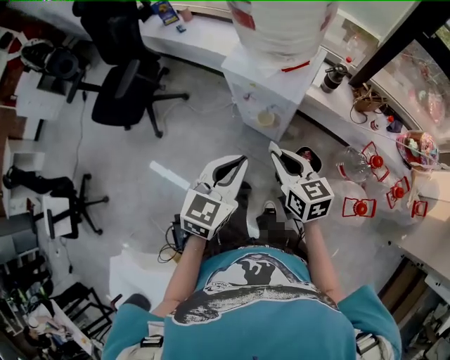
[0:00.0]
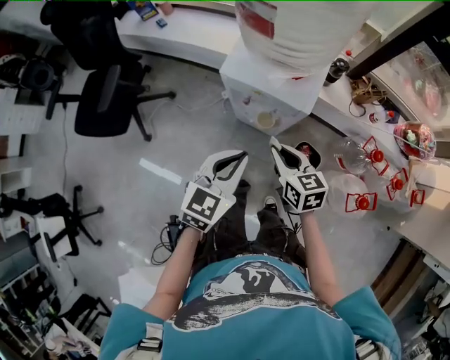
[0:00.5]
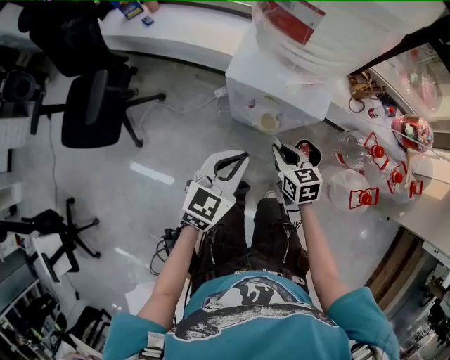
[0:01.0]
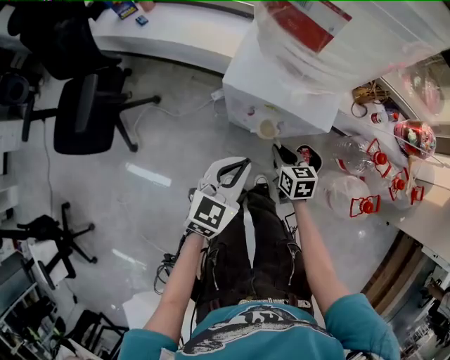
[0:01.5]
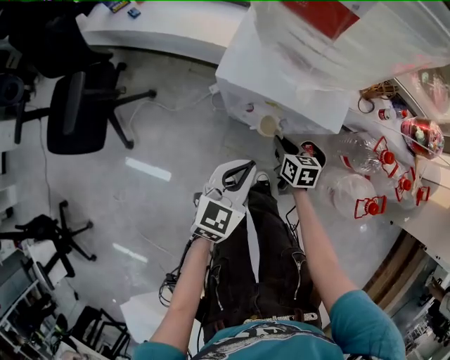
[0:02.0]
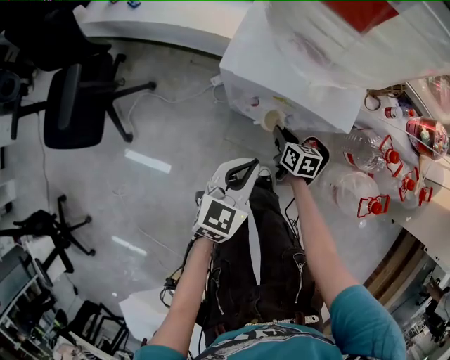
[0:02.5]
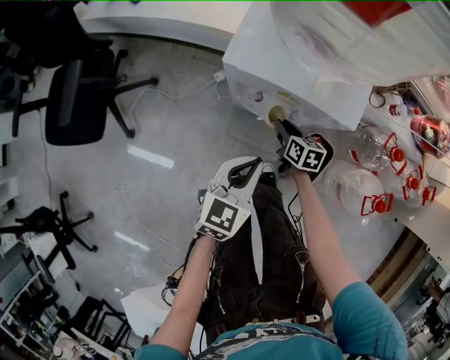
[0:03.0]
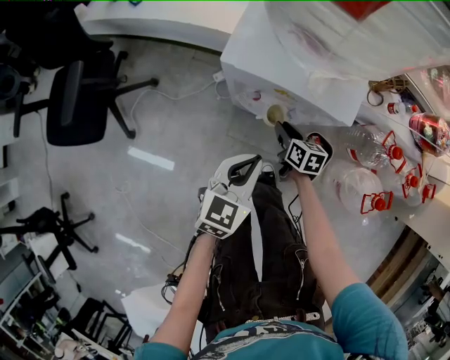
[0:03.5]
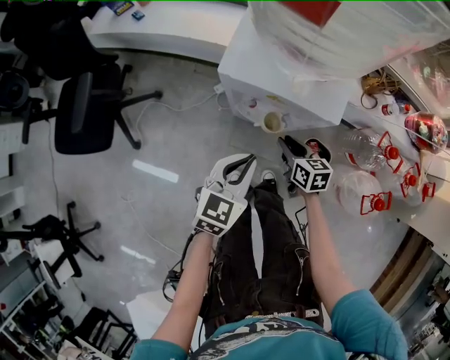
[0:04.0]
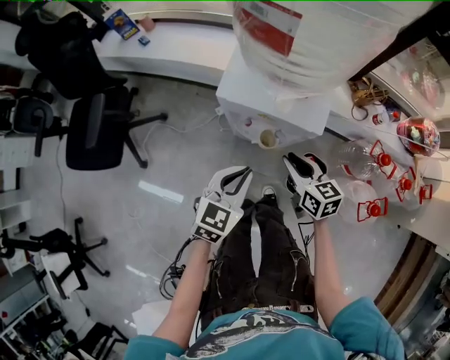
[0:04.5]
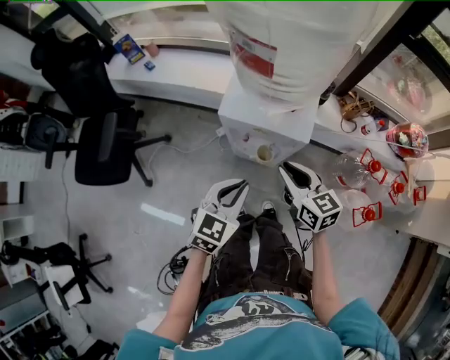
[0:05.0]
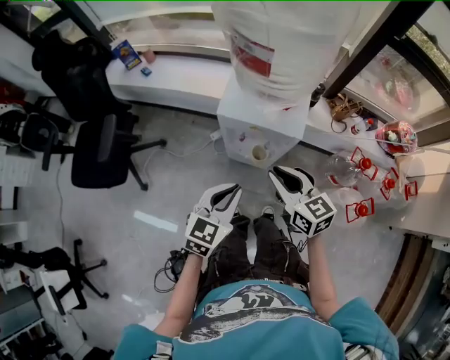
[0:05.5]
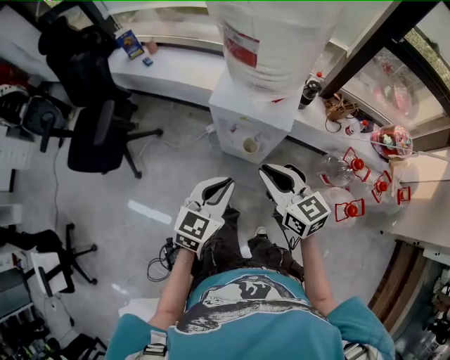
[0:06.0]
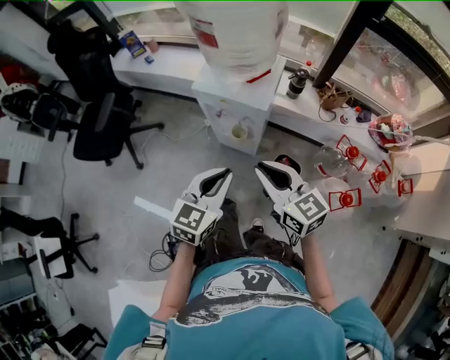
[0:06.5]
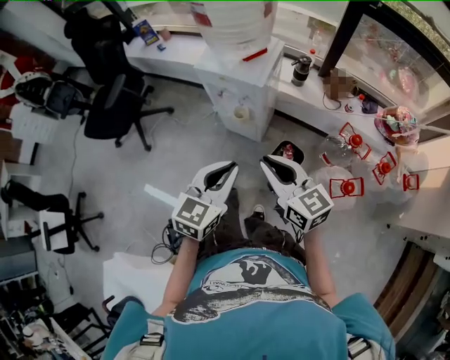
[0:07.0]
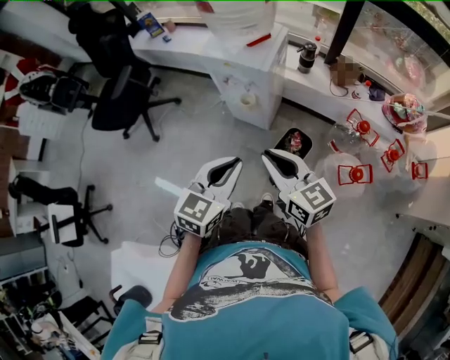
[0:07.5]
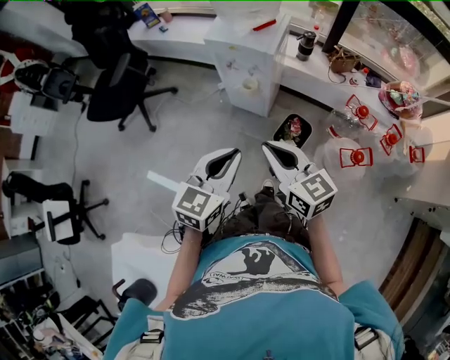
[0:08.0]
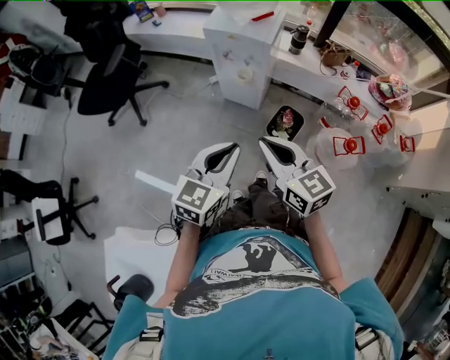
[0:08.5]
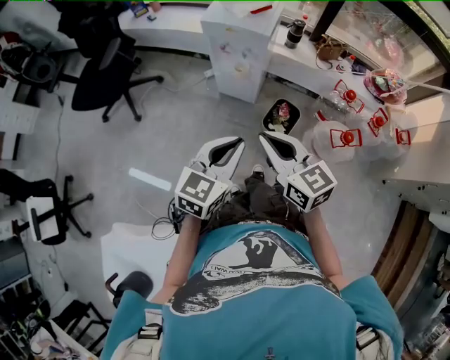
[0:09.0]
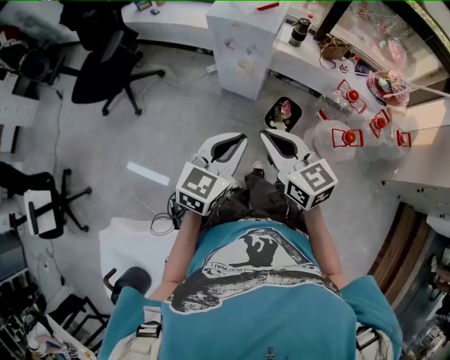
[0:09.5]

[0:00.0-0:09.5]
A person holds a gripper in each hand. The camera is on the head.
0:00.0 to 0:02.0: The left gripper shifts some 20 cm downward and forward, while the right gripper moves downward and forward, some 35 cm, and turns by approximately 30 degrees.
0:02.0 to 0:04.0: There are only small adjustments of the grippers.
0:04.0 to 0:05.5: The left gripper travels upward and backward by some 15 cm, while the right gripper travels upward by approximately 25 cm, and turns by some 20 degrees.
0:05.5 to 0:07.5: Both grippers move backward and to the right, approximately 25 cm.
0:07.5 to 0:09.5: Both grippers travel together backward and to the left, some 10 cm.

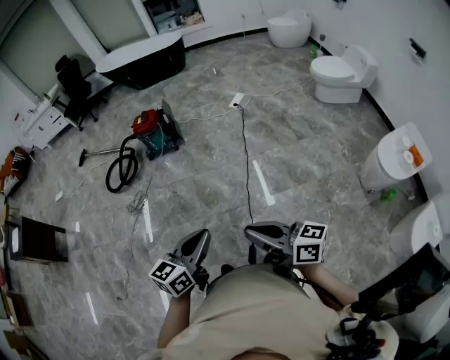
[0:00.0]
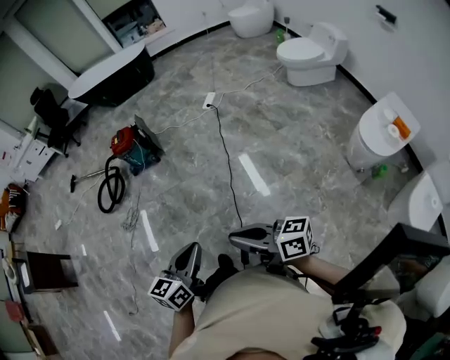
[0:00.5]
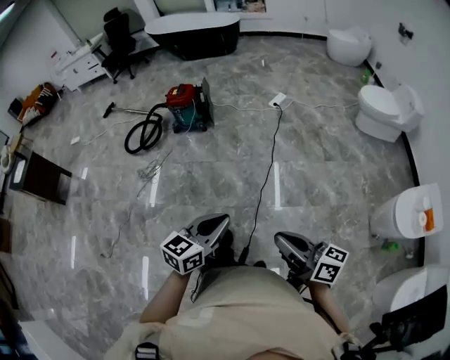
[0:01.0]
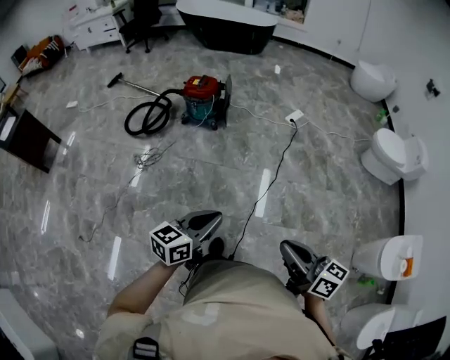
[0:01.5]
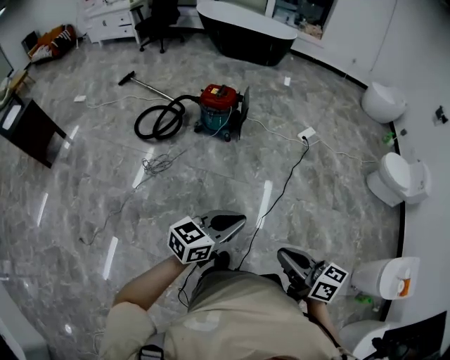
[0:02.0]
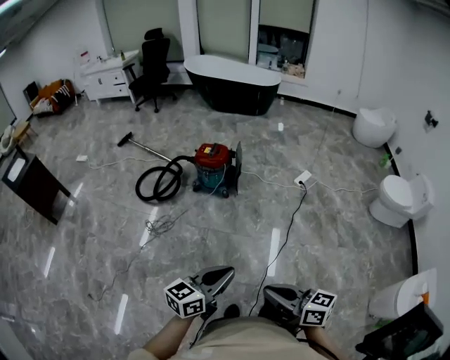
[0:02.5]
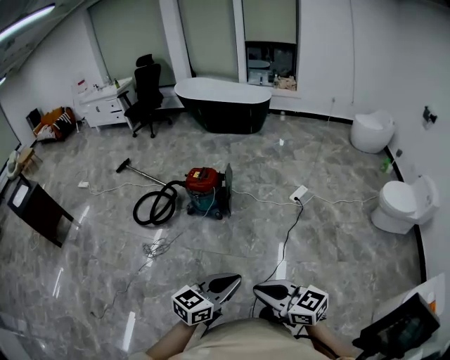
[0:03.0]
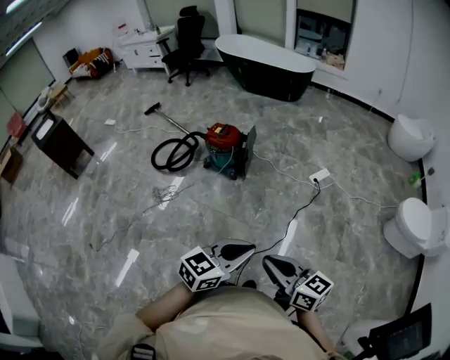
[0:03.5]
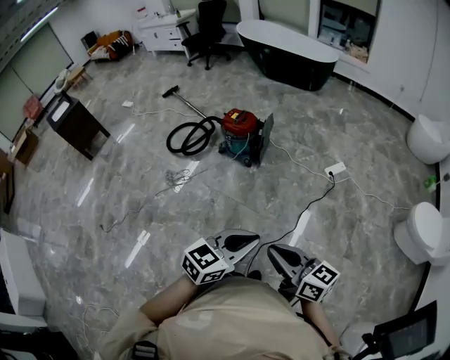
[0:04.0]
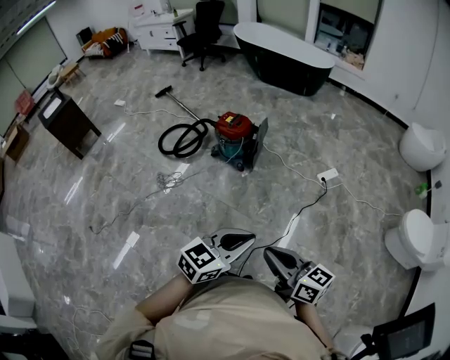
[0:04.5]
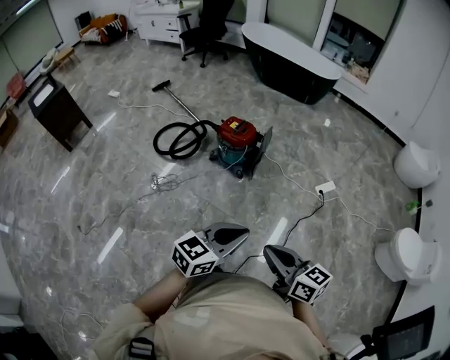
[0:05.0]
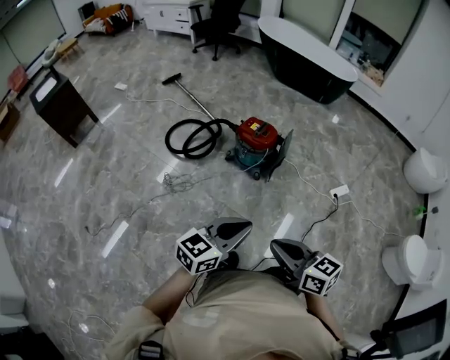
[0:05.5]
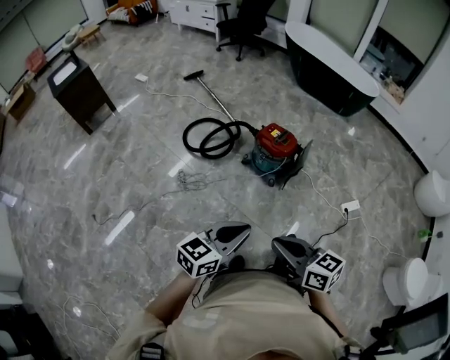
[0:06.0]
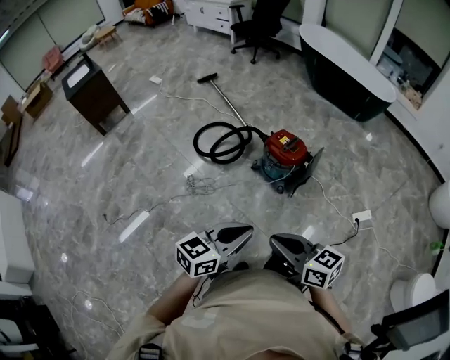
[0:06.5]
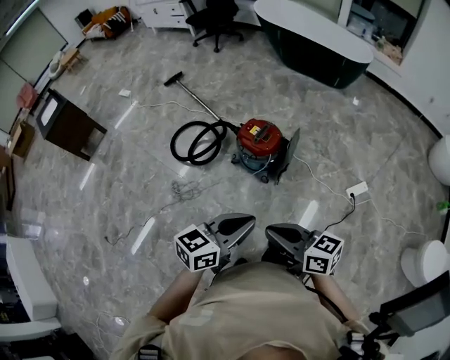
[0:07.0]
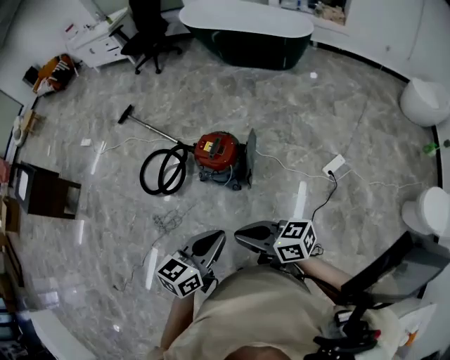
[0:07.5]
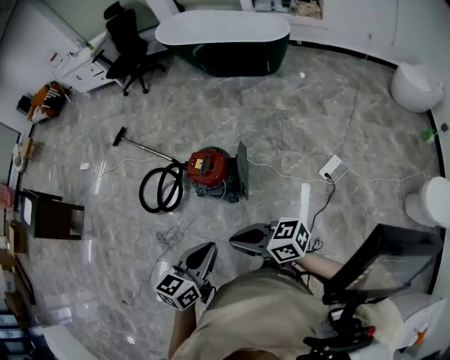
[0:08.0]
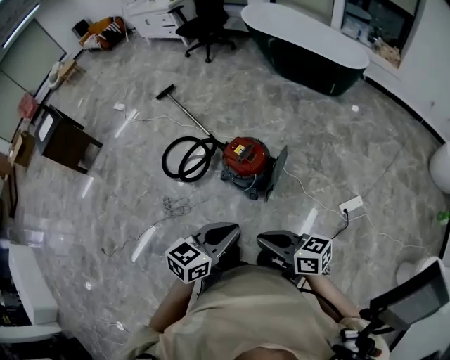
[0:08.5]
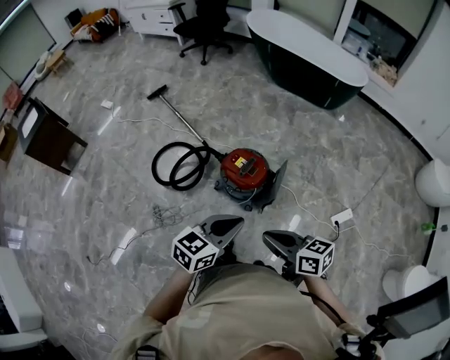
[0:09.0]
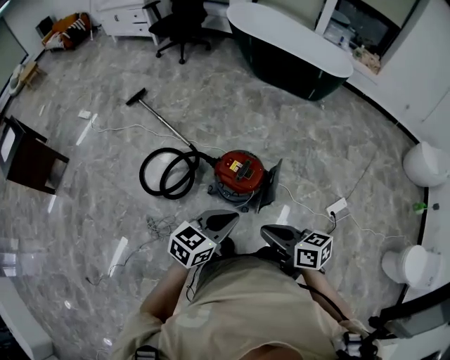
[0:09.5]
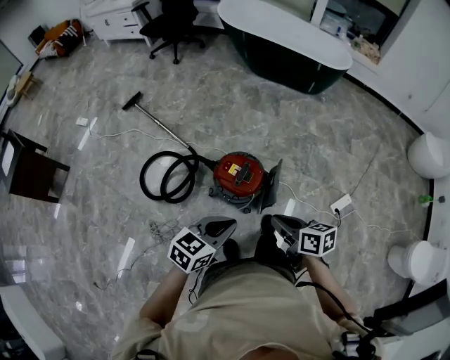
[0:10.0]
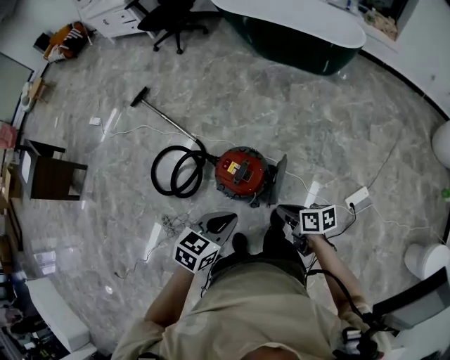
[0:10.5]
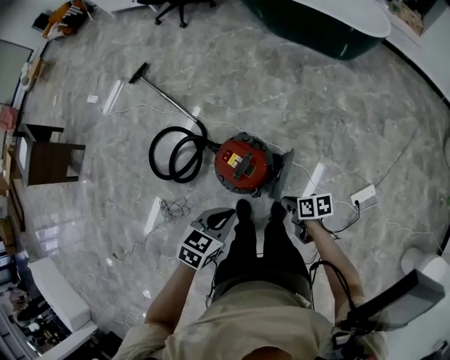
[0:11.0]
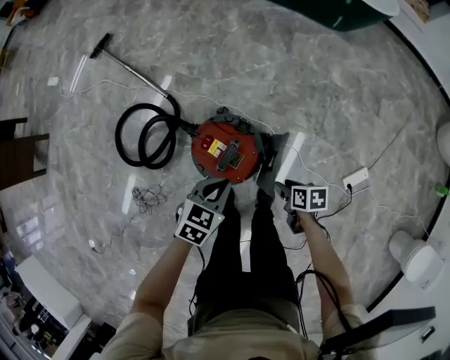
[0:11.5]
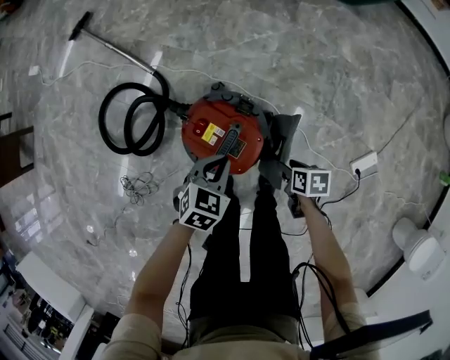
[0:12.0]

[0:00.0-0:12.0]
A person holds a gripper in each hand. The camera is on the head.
0:00.0 to 0:02.0: The grippers both shift forward and to the left by approximately 25 cm.
0:02.0 to 0:04.0: Both grippers travel together to the right and forward, some 30 cm. The right gripper changes its angle by approximately 20 degrees.
0:04.0 to 0:06.0: The two grippers go roughly 35 cm to the left and forward. The right gripper swivels some 20 degrees.
0:06.0 to 0:08.0: Both grippers travel together to the right and forward, about 35 cm.
0:08.0 to 0:10.0: The right gripper goes about 25 cm forward and downward, and turns by about 40 degrees; the left gripper is displaced forward and to the left by approximately 25 cm.
0:10.0 to 0:12.0: The left gripper travels downward and forward by about 40 cm, and changes its angle by approximately 30 degrees; the right gripper travels downward by approximately 40 cm, tilts its fingers roughly 30 degrees downward, and opens.

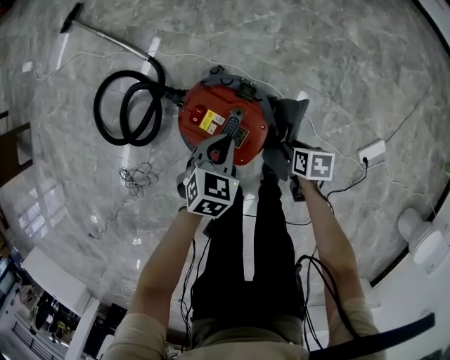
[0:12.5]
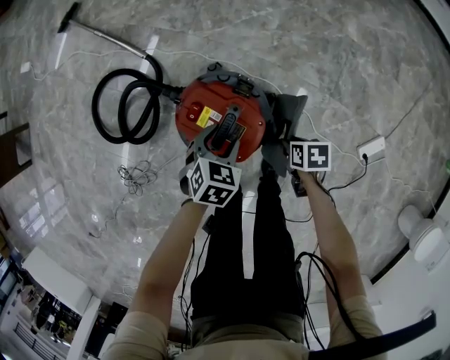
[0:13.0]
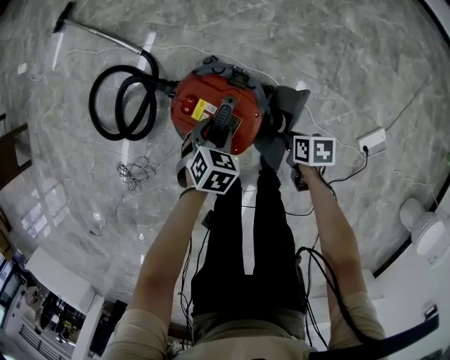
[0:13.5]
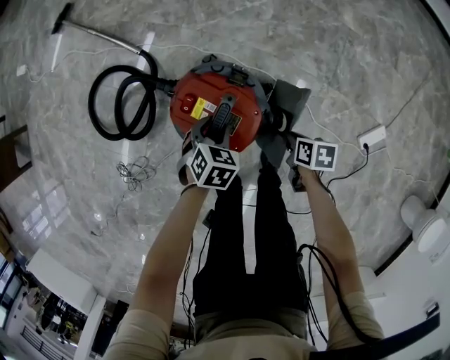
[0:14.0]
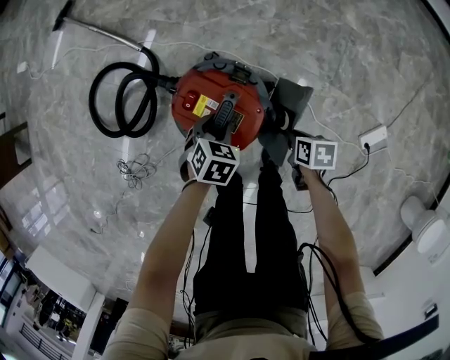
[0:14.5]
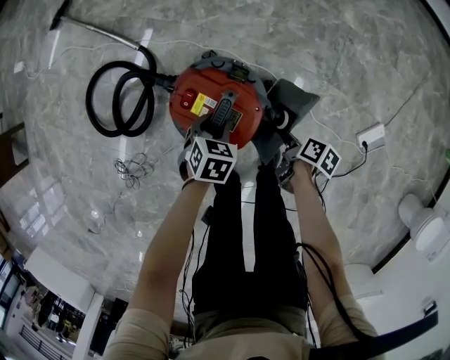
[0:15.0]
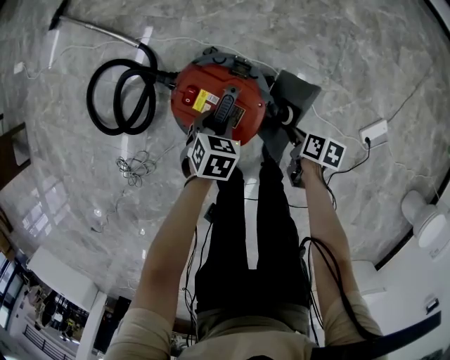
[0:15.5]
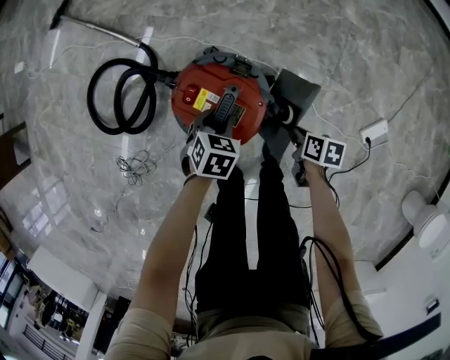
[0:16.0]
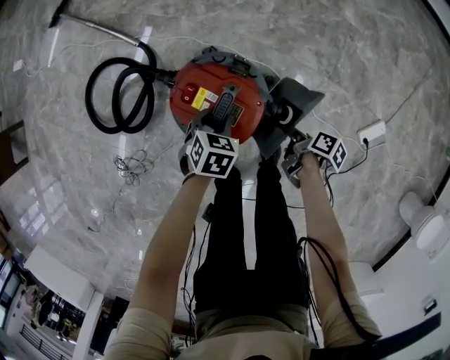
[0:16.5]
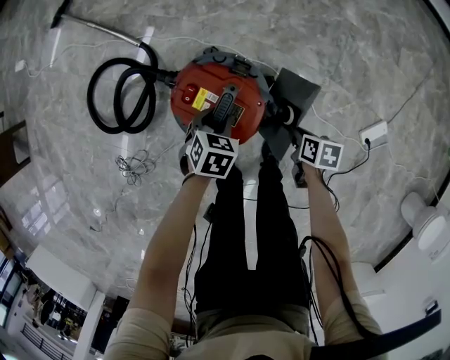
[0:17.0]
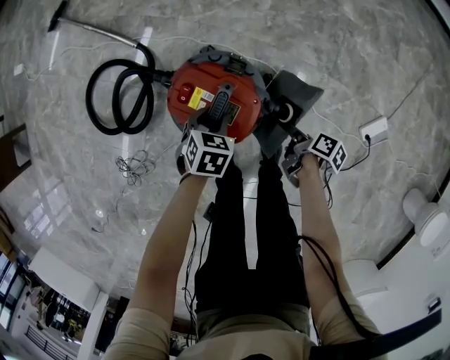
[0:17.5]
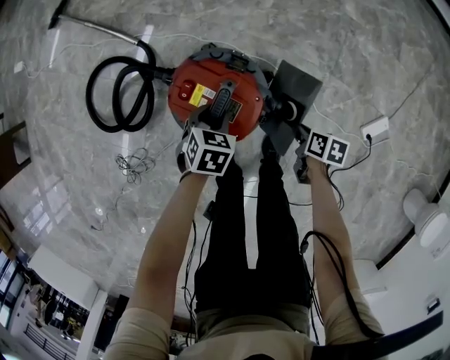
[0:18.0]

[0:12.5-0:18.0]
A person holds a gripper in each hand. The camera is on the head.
0:12.5 to 0:14.5: The left gripper heads downward, covering approximately 5 cm, and opens. Meanwhile the right gripper closes.
